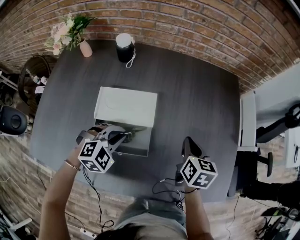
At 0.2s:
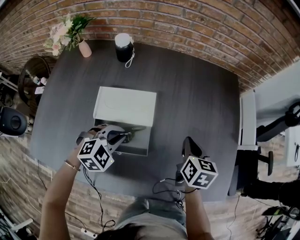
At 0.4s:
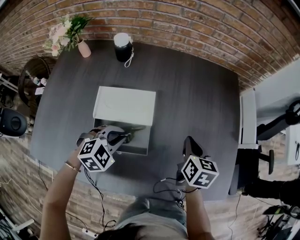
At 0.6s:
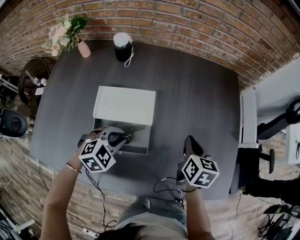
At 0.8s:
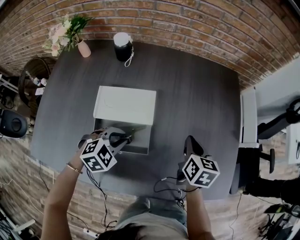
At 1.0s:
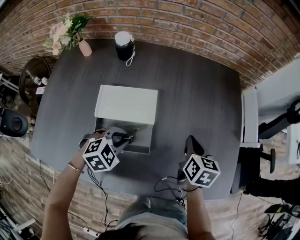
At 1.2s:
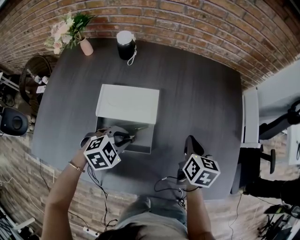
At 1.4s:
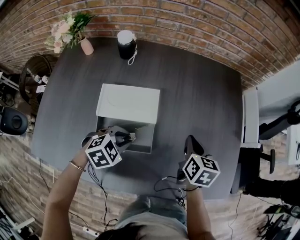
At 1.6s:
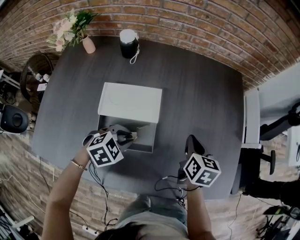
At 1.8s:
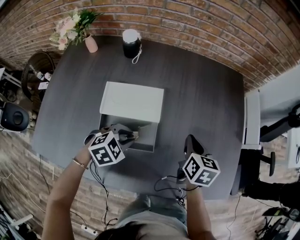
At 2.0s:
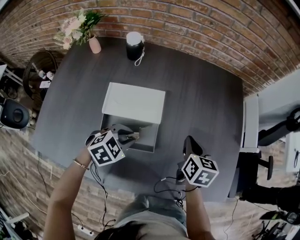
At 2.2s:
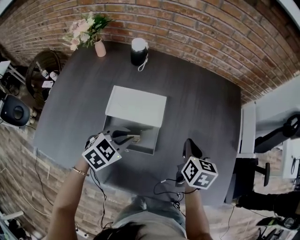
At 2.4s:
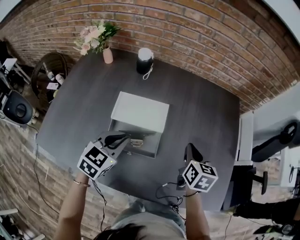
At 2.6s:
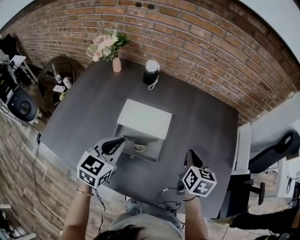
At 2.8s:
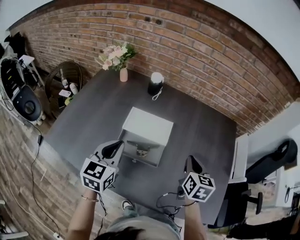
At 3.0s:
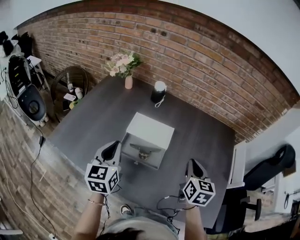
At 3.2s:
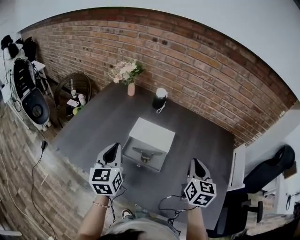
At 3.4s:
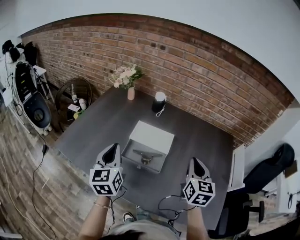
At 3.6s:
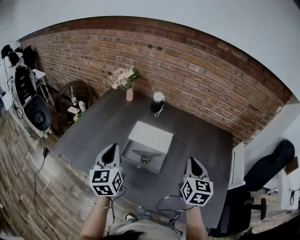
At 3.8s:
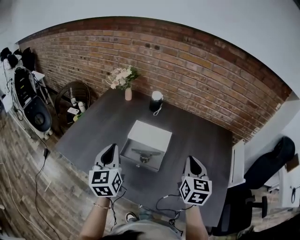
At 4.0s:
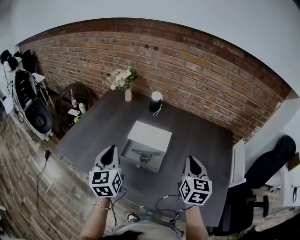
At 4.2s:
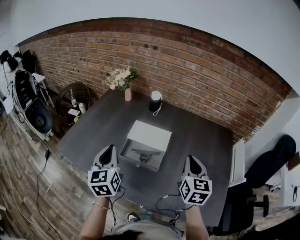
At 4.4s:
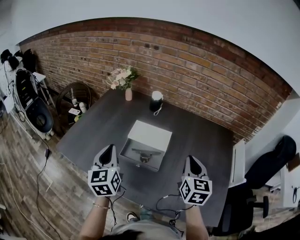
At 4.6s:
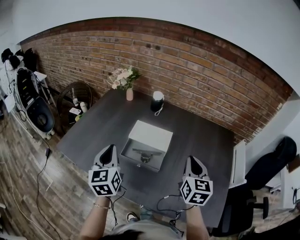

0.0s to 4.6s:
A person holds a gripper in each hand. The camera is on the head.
0.0s to 1.6s: The left gripper rotates some 20 degrees.
1.6s to 3.0s: The right gripper goes some 15 cm upward, and changes its angle by about 20 degrees, while the left gripper moves upward, some 20 cm, and points its fingers about 40 degrees further upward.
3.0s to 4.6s: The right gripper travels upward by approximately 5 cm, while the left gripper moves roughly 5 cm.

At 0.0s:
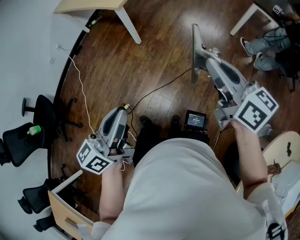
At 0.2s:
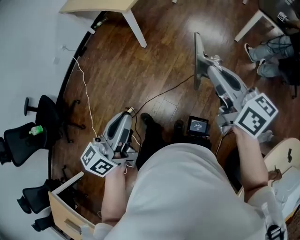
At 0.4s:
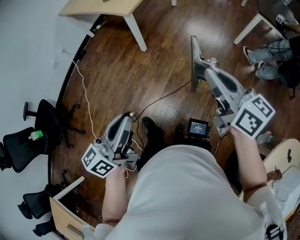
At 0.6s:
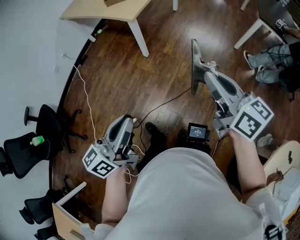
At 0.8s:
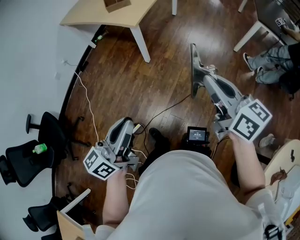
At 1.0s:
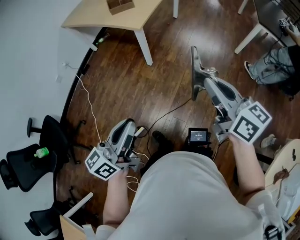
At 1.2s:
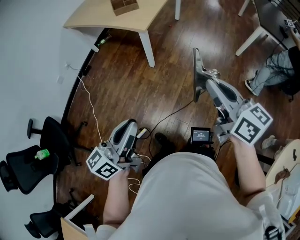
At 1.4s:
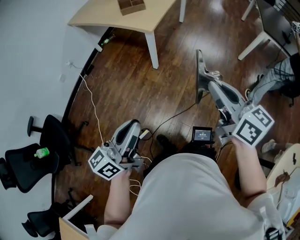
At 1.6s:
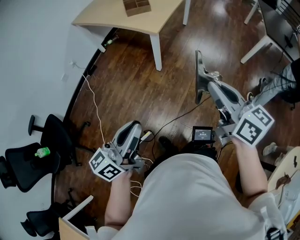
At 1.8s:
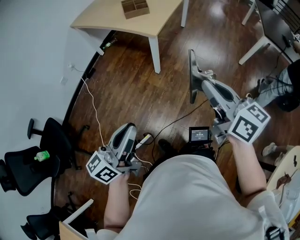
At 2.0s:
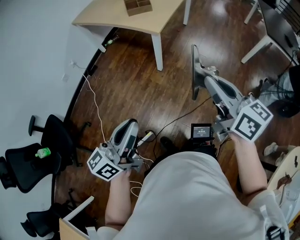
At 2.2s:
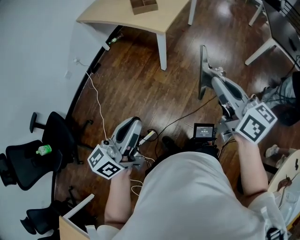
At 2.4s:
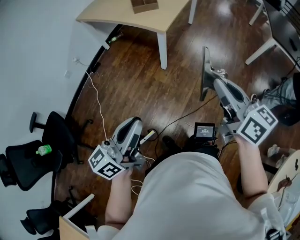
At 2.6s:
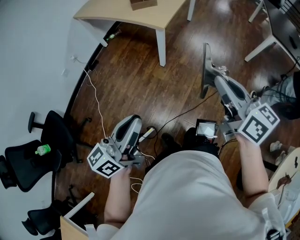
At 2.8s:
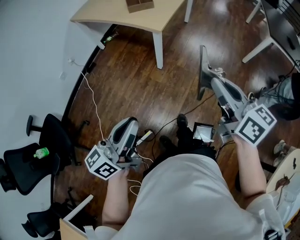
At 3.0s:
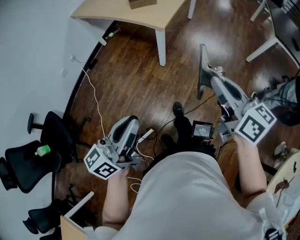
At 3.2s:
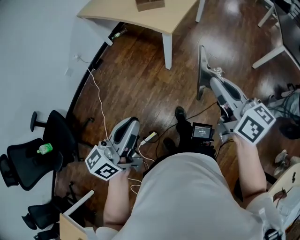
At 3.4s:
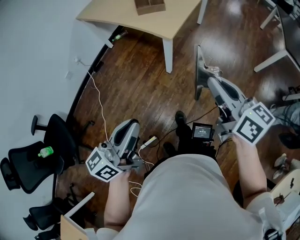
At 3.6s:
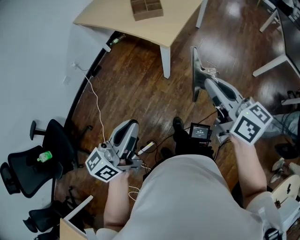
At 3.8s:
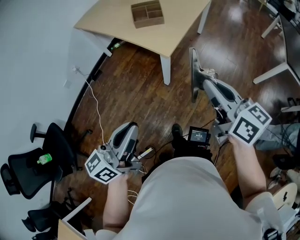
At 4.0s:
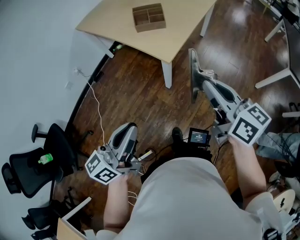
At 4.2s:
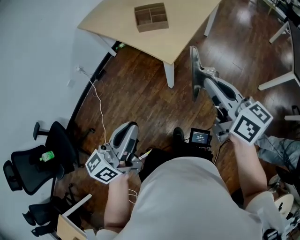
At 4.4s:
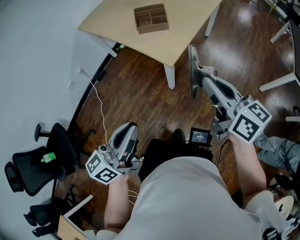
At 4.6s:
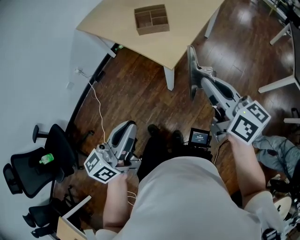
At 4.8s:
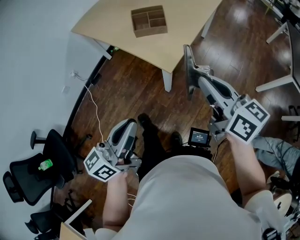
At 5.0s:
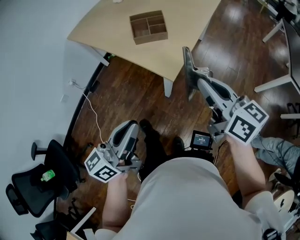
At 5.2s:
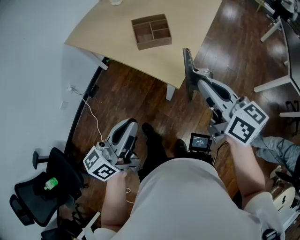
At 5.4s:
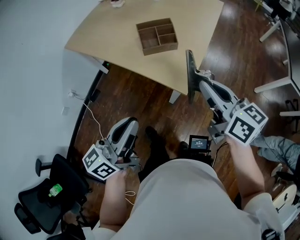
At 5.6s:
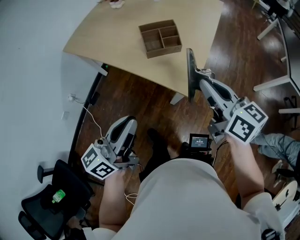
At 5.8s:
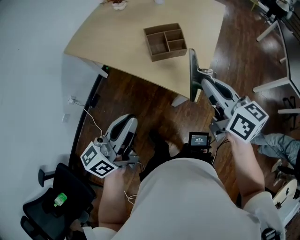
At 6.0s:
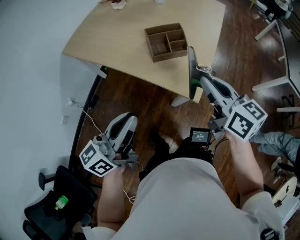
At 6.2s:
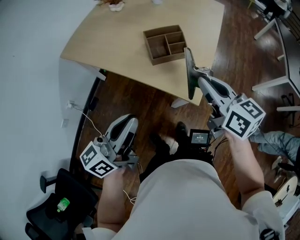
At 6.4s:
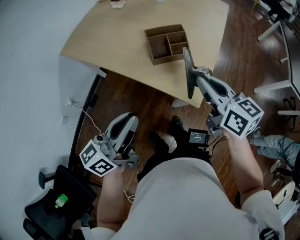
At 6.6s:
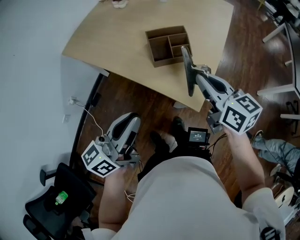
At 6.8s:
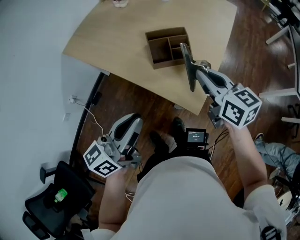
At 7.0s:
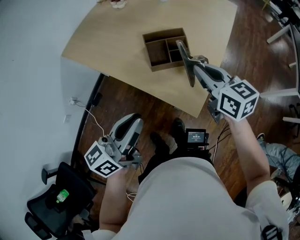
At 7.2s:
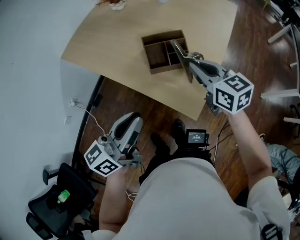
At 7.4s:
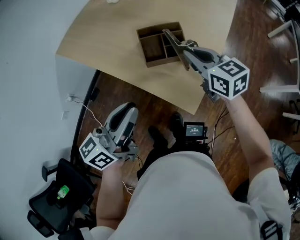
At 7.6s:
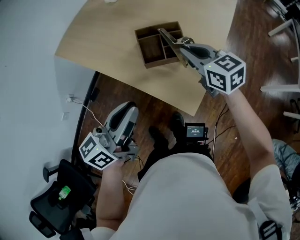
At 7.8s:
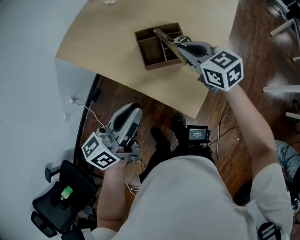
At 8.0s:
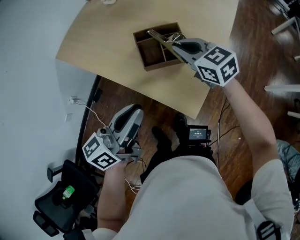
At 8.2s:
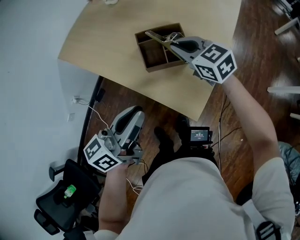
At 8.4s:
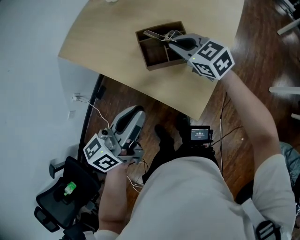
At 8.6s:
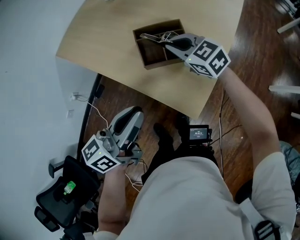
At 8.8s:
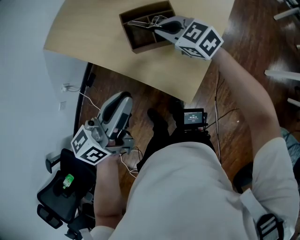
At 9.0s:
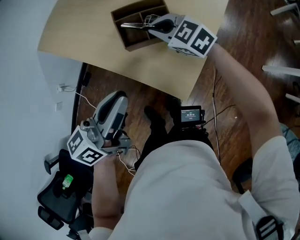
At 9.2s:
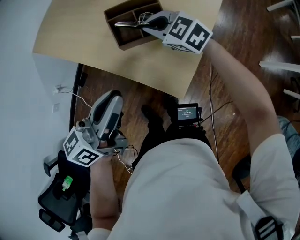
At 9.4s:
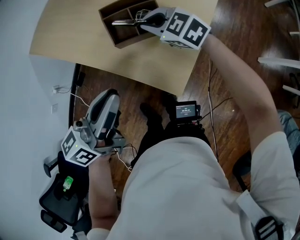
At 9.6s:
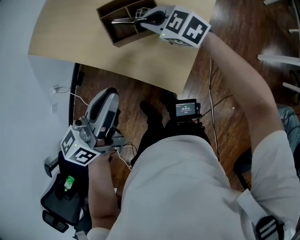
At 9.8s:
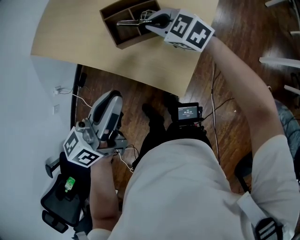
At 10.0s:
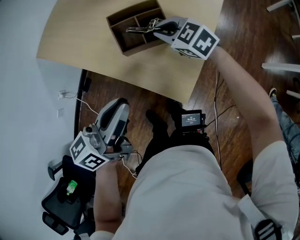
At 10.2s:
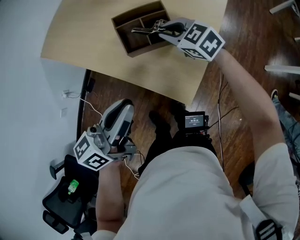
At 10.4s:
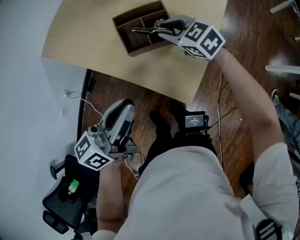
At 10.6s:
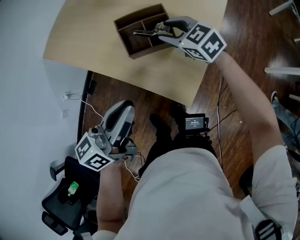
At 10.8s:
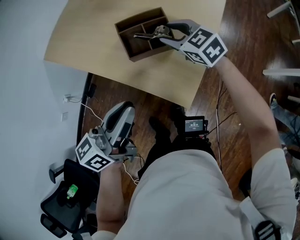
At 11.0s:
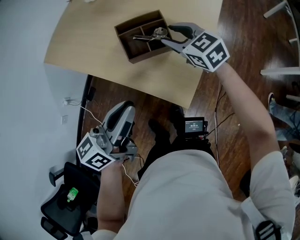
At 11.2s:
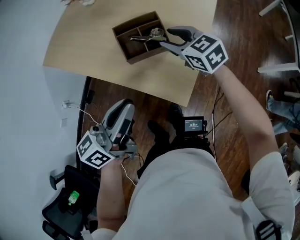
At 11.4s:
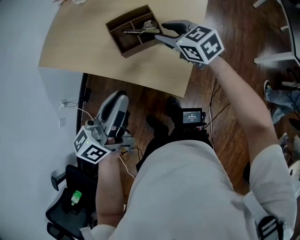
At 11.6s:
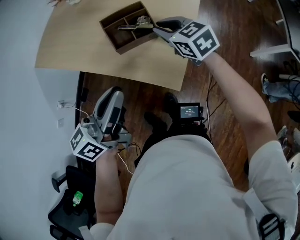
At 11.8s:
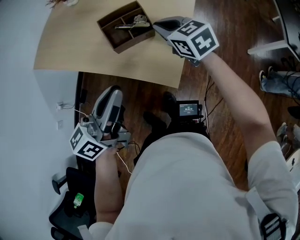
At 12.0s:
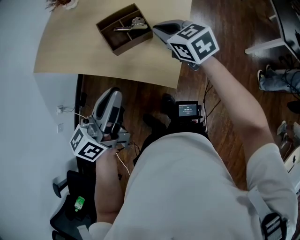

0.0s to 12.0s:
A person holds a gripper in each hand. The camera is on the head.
0.0s to 1.6s: The left gripper is displaced to the left and forward by approximately 25 cm. Meanwhile the right gripper shifts roughly 25 cm to the left.
1.6s to 3.0s: The grippers stay close to where they were, moving slightly.
3.0s to 4.4s: The grippers both shift forward by some 25 cm.
4.4s to 6.0s: Both grippers travel together forward and to the left, about 35 cm.
6.0s to 7.6s: The right gripper is displaced forward and downward by roughly 20 cm, and turns by about 20 degrees; the left gripper is displaced forward and to the right by about 15 cm.
7.6s to 9.0s: The right gripper shifts approximately 10 cm downward and to the left, and turns by some 30 degrees.
9.0s to 10.4s: The right gripper opens.
10.4s to 12.0s: The right gripper is displaced upward and backward by roughly 10 cm, changes its angle by approximately 20 degrees, and closes.

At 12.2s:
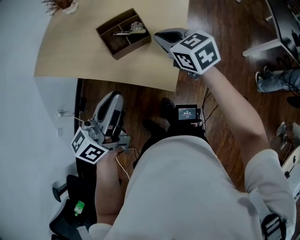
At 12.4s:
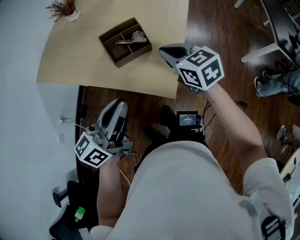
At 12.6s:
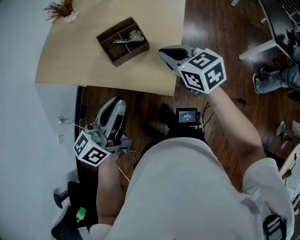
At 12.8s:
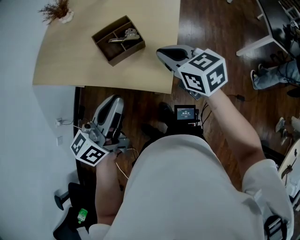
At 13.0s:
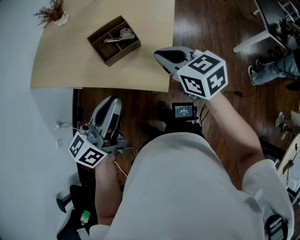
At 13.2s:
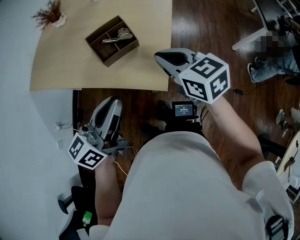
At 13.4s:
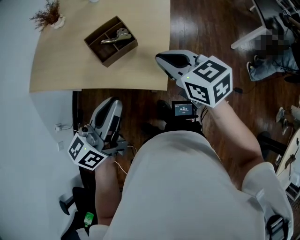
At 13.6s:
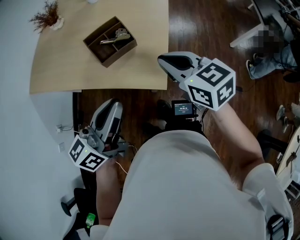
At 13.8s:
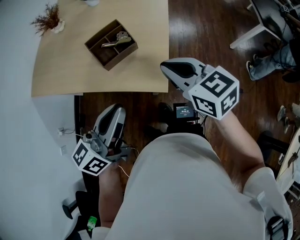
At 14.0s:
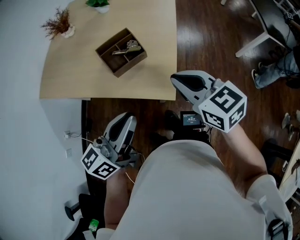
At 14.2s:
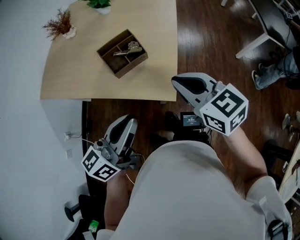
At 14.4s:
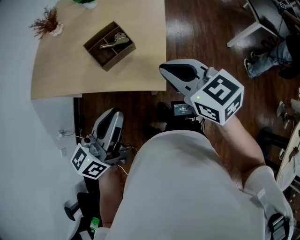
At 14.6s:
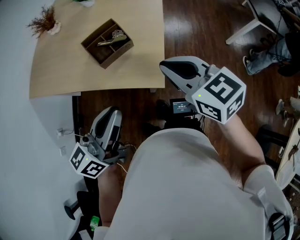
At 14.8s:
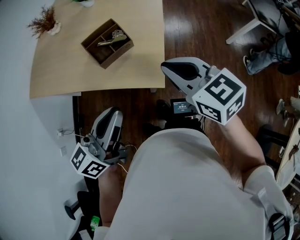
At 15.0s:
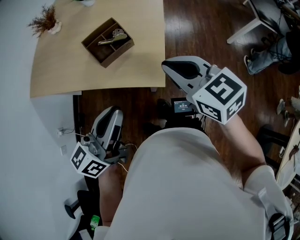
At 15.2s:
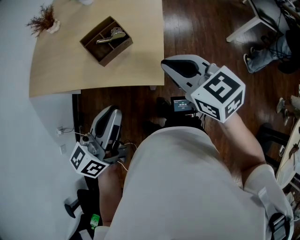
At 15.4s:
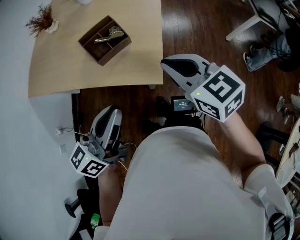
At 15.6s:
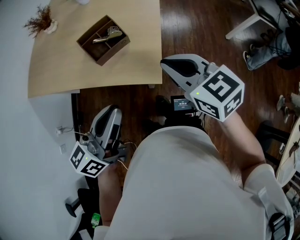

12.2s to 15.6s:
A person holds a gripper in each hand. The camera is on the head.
12.2s to 13.8s: The right gripper goes some 15 cm backward and upward.
13.8s to 15.6s: The grippers stay close to where they were, moving slightly.

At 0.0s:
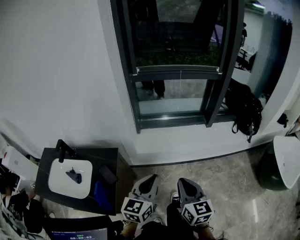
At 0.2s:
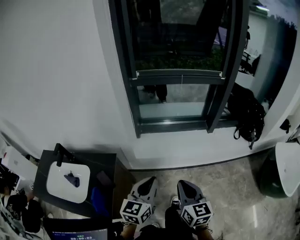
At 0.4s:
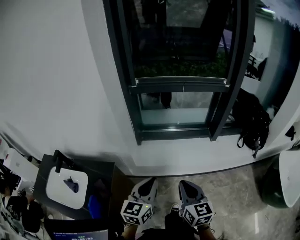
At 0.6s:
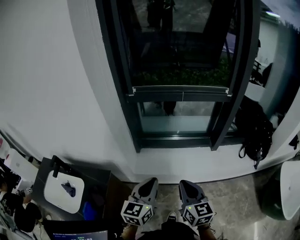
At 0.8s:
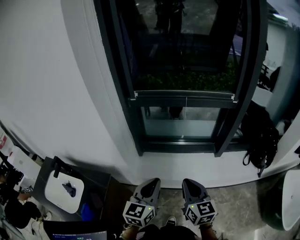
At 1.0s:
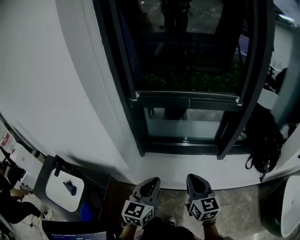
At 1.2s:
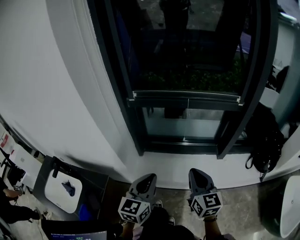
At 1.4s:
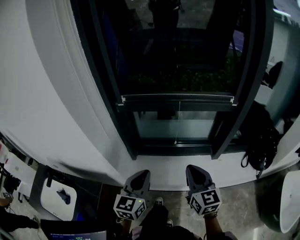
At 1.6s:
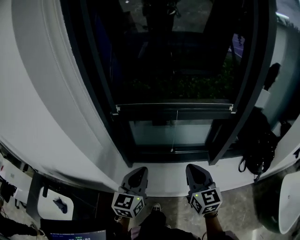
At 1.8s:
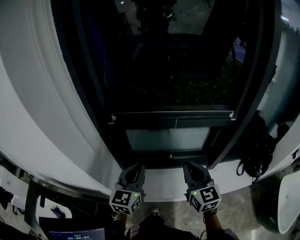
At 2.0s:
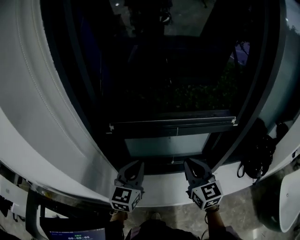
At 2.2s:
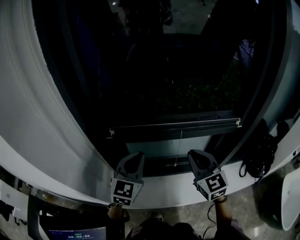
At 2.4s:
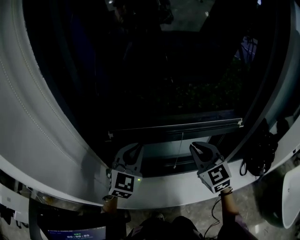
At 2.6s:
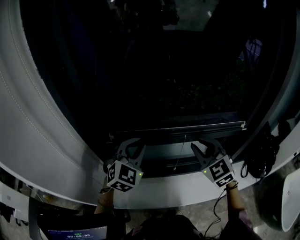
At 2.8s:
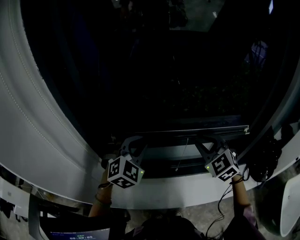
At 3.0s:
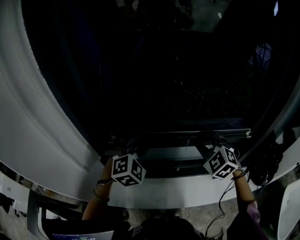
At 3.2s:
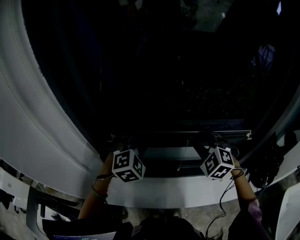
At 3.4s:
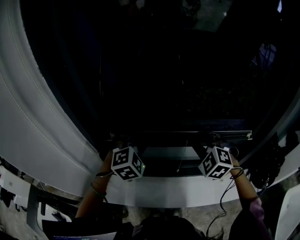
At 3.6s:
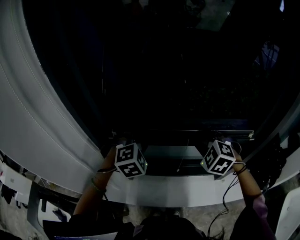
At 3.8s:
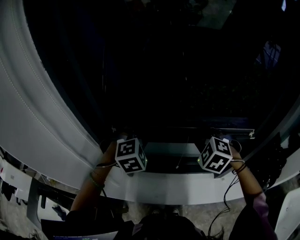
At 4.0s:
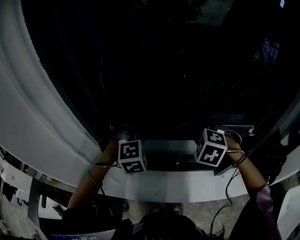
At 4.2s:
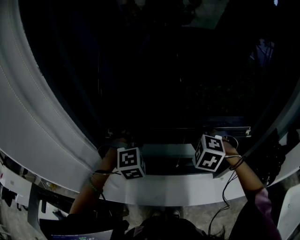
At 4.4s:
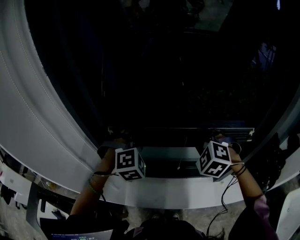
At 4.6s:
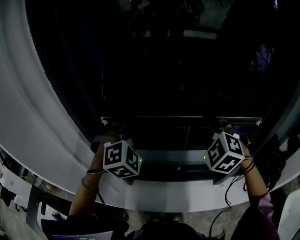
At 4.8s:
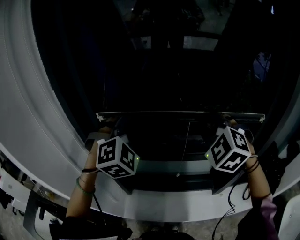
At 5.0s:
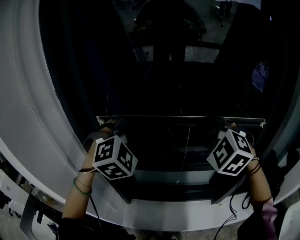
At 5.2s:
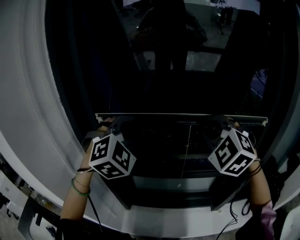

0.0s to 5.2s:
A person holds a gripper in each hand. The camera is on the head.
0.0s to 1.8s: Both grippers are carried forward, approximately 50 cm.
1.8s to 3.4s: The two grippers go about 20 cm forward. The right gripper rolls counterclockwise, seen from behind, by roughly 60 degrees; the left gripper rotates around the line of its fingers by roughly 60 degrees, clockwise from behind.
3.4s to 5.2s: The two grippers go some 25 cm upward. The left gripper rotates about 20 degrees.
